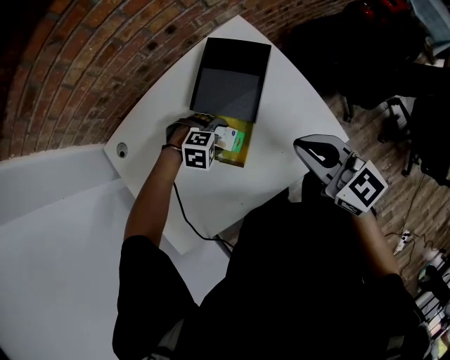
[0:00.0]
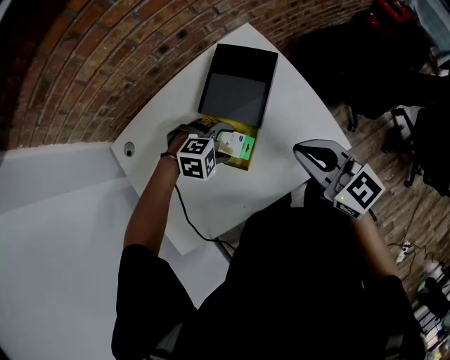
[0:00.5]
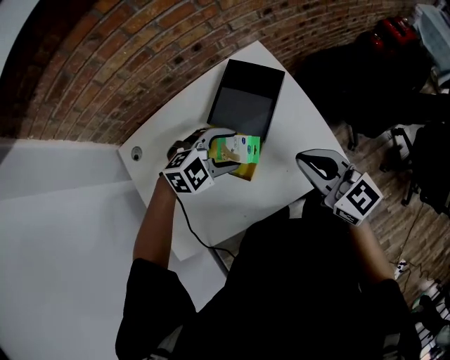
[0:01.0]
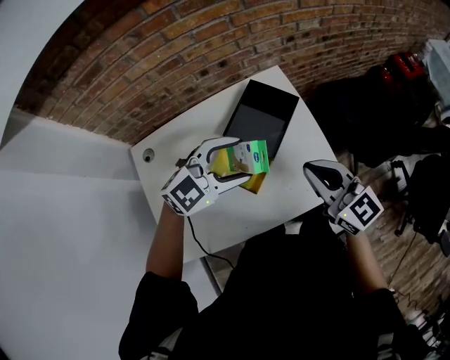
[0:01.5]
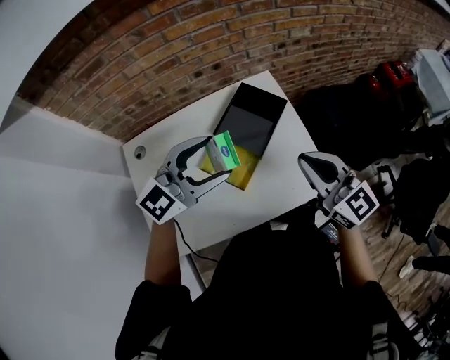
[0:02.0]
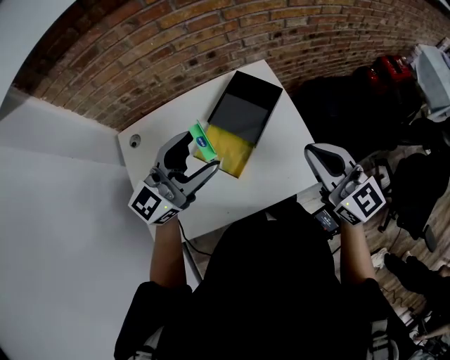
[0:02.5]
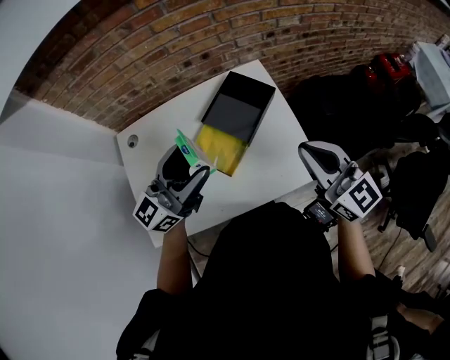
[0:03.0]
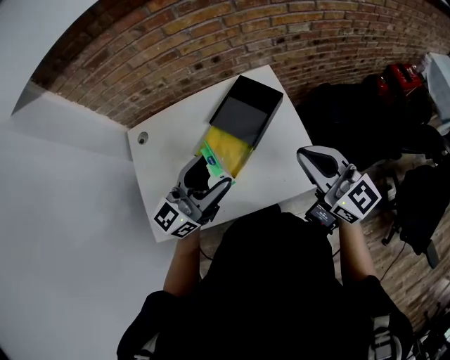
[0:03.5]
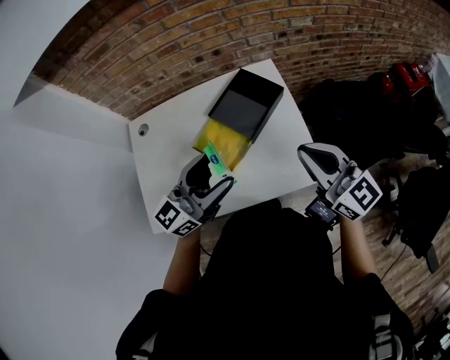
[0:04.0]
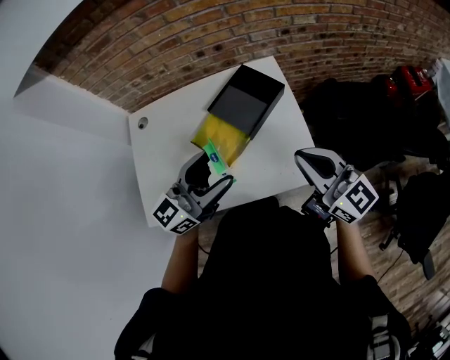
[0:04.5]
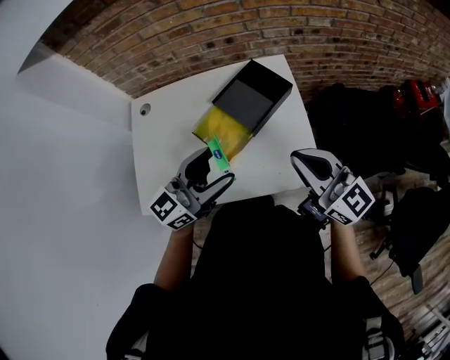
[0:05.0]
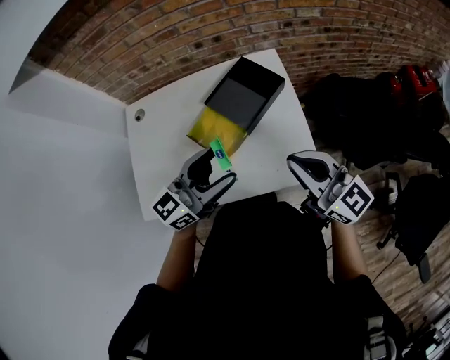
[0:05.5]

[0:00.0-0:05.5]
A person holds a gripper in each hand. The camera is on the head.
0:00.0 to 0:02.0: The left gripper moves upward, about 35 cm, and tilts its fingers some 70 degrees upward; the right gripper goes about 10 cm upward.
0:02.0 to 0:03.5: The right gripper is displaced to the right by some 5 cm; the left gripper goes about 5 cm backward, and rotates roughly 30 degrees.
0:03.5 to 0:05.5: The left gripper changes place by approximately 5 cm. Meanwhile the right gripper moves some 5 cm.

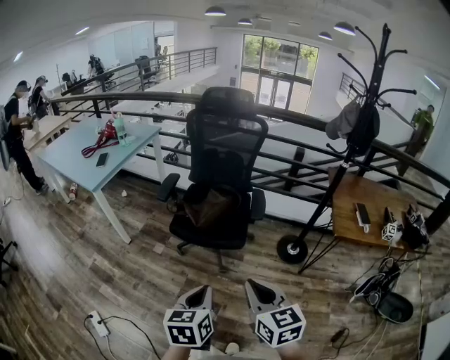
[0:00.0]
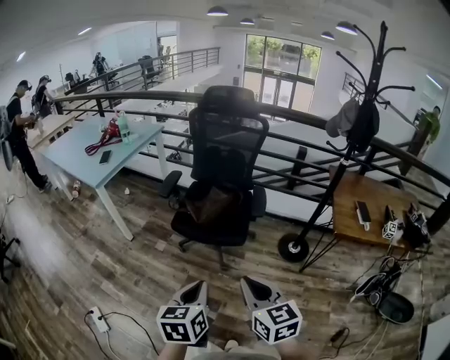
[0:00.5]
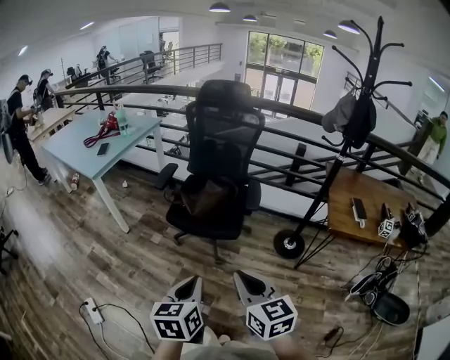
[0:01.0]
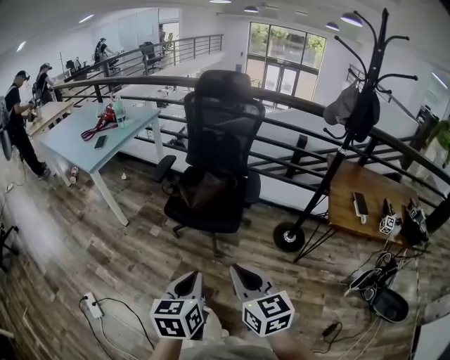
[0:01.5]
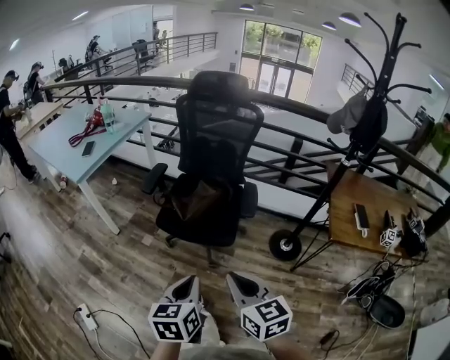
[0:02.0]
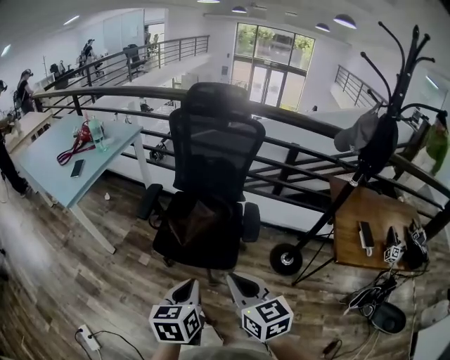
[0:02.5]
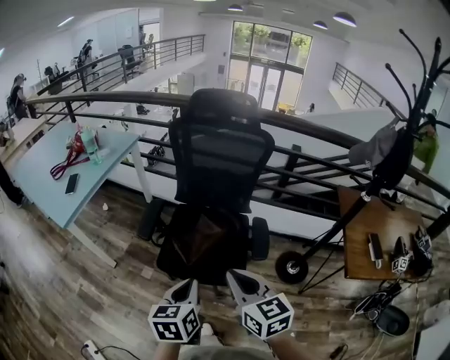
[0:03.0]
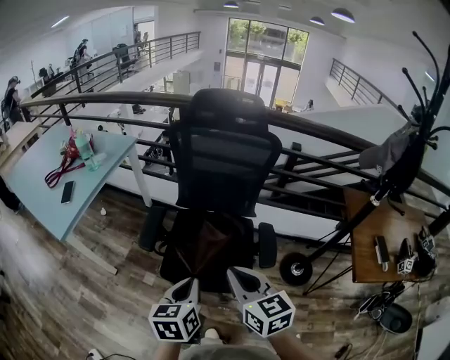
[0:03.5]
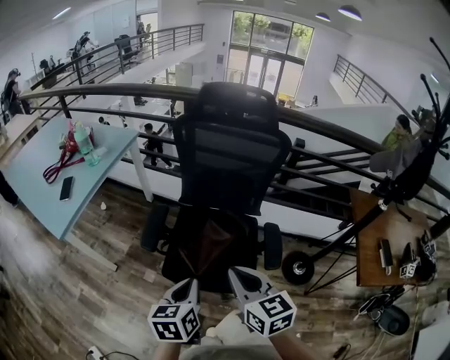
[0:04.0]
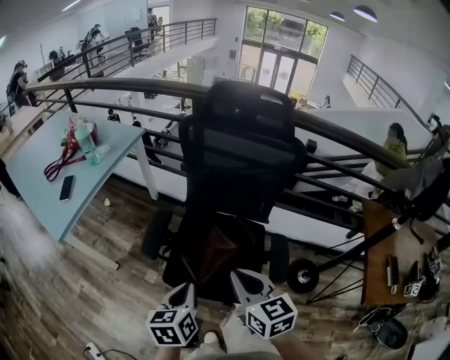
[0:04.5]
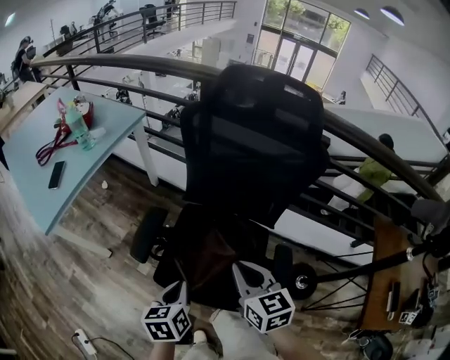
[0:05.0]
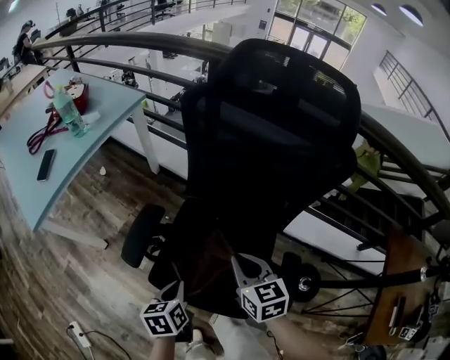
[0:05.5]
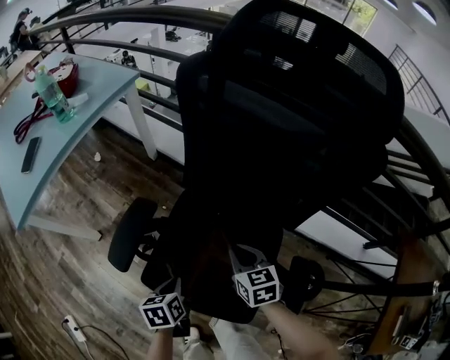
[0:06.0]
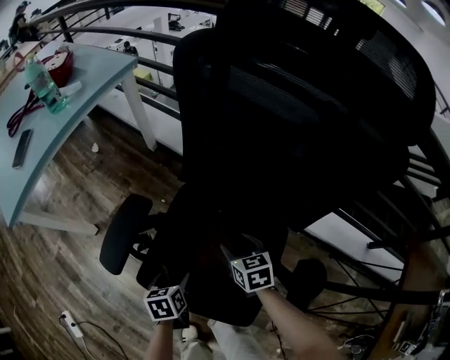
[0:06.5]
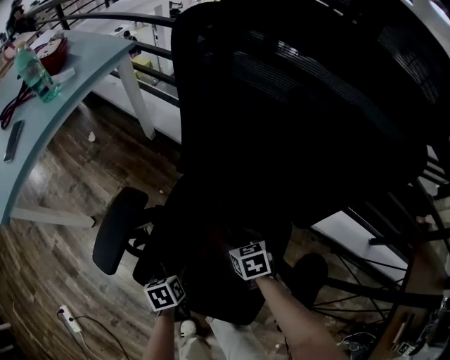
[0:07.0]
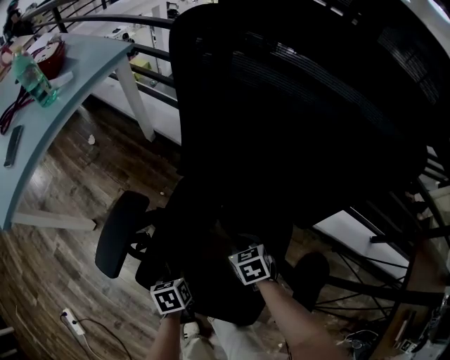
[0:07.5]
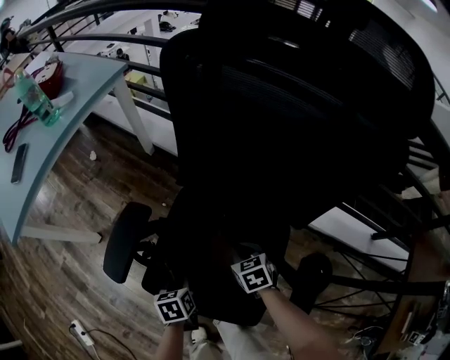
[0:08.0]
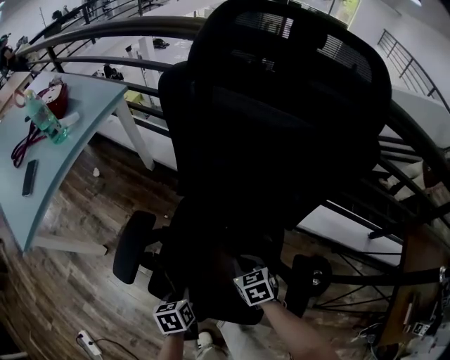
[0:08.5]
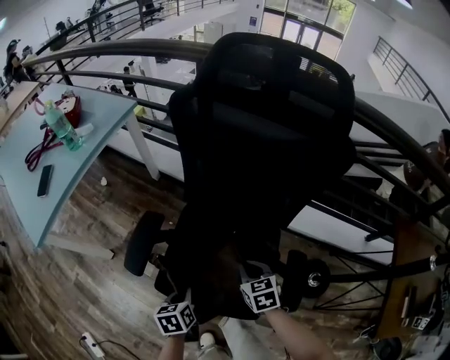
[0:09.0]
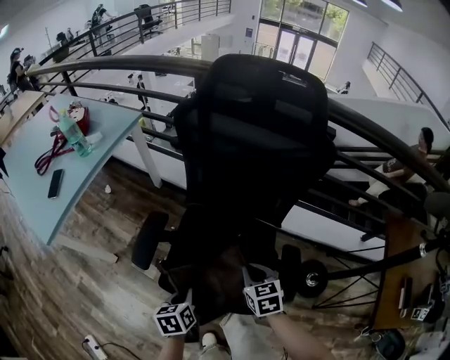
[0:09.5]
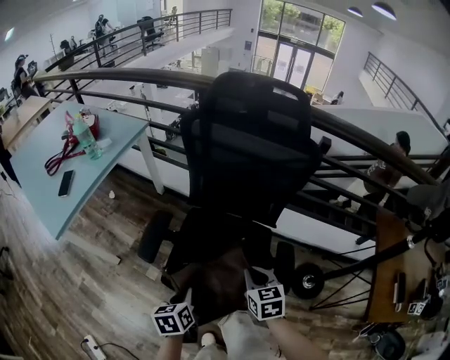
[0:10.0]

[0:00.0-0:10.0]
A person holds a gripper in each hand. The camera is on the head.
0:00.0 to 0:02.0: The two grippers go about 5 cm forward.
0:02.0 to 0:04.0: The two grippers go approximately 30 cm forward.
0:04.0 to 0:06.0: Both grippers travel together downward and forward, some 35 cm. The right gripper swivels some 20 degrees; the left gripper changes its angle by approximately 30 degrees.
0:06.0 to 0:08.0: The two grippers go approximately 10 cm downward. The left gripper opens and closes again; the right gripper opens, then closes again.
0:08.0 to 0:10.0: The grippers both shift upward and backward by some 30 cm. The right gripper changes its angle by some 30 degrees.

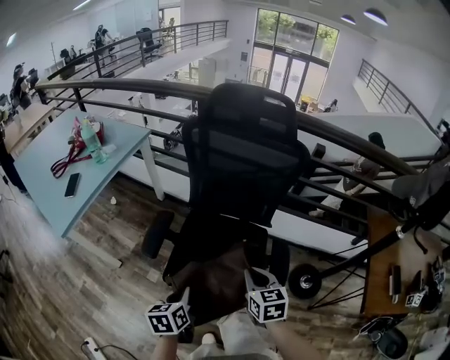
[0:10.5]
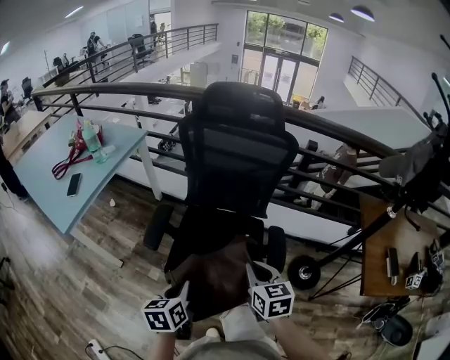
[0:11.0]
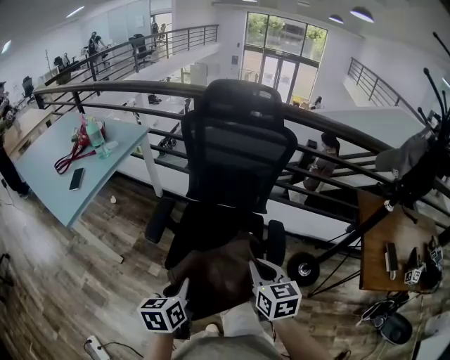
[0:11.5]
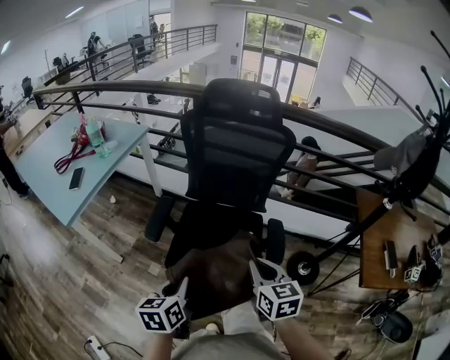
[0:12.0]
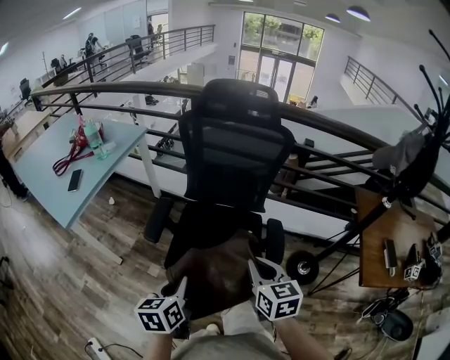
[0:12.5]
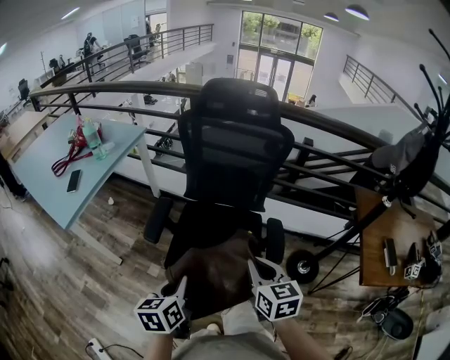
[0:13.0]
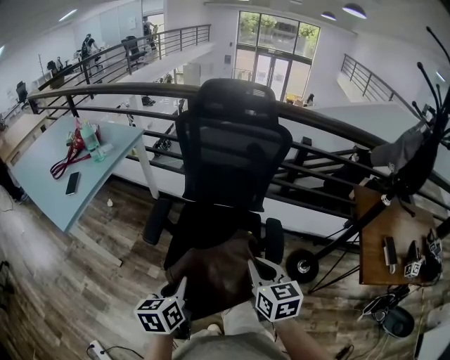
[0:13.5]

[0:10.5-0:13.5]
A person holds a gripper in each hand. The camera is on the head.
0:10.5 to 0:12.0: The grippers both shift backward and upward by roughly 10 cm.
0:12.0 to 0:13.5: The two grippers keep their place.

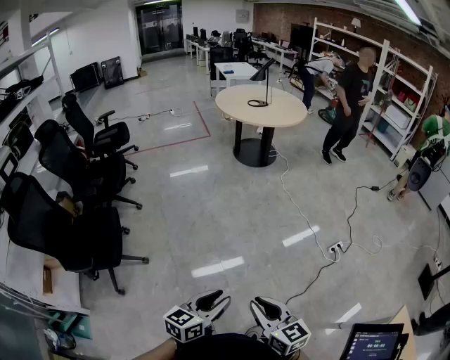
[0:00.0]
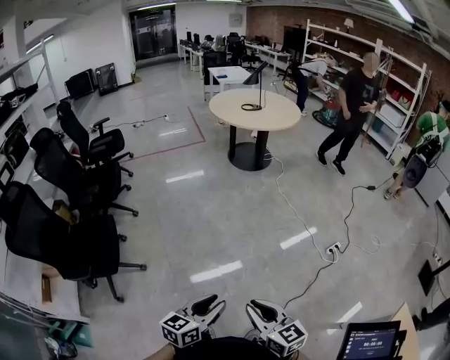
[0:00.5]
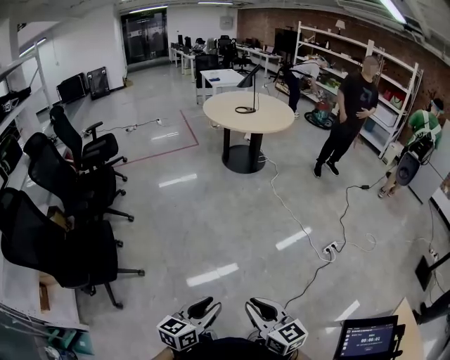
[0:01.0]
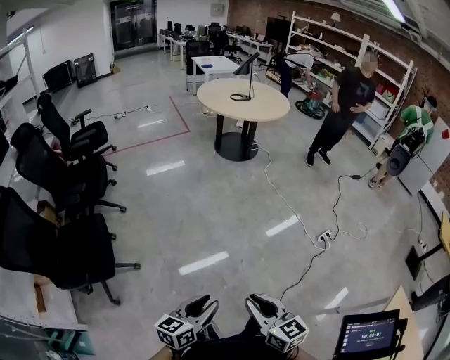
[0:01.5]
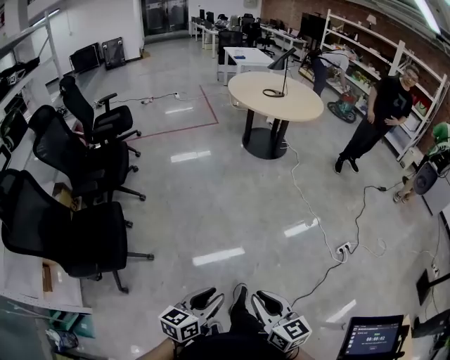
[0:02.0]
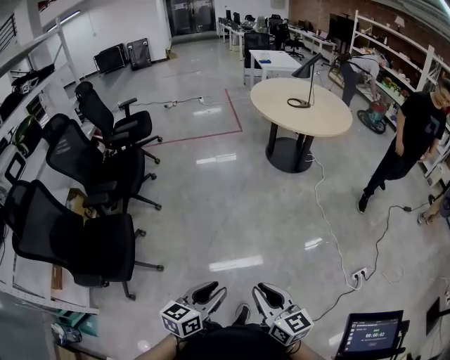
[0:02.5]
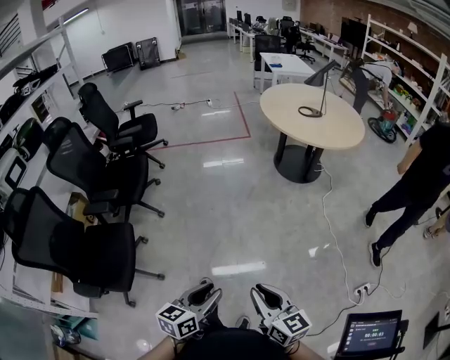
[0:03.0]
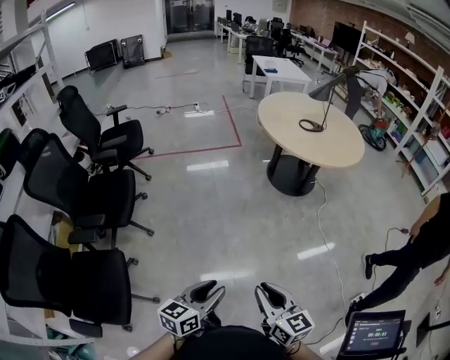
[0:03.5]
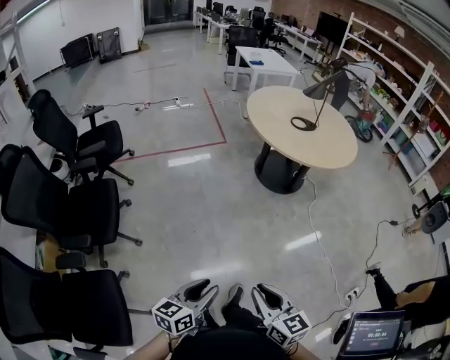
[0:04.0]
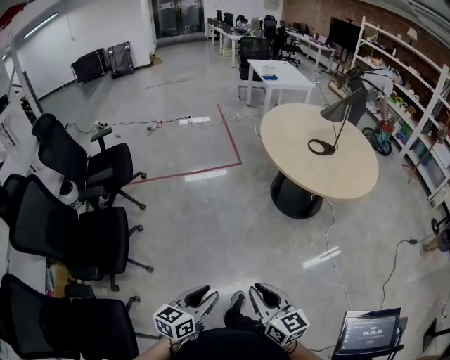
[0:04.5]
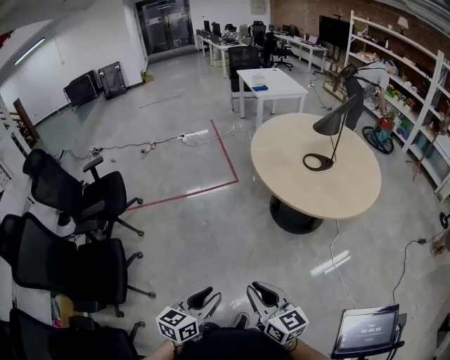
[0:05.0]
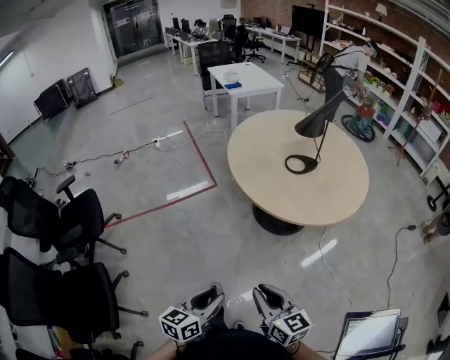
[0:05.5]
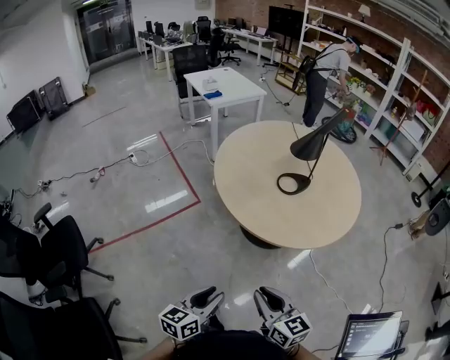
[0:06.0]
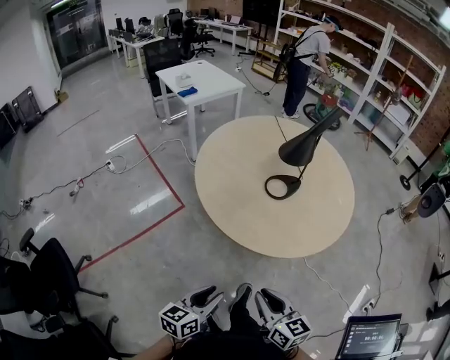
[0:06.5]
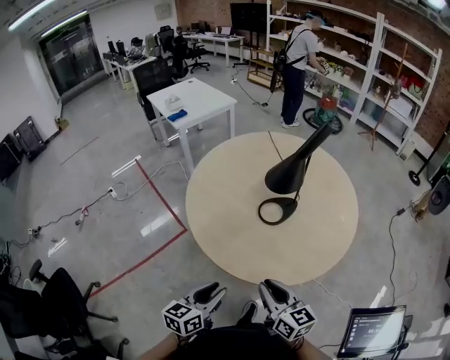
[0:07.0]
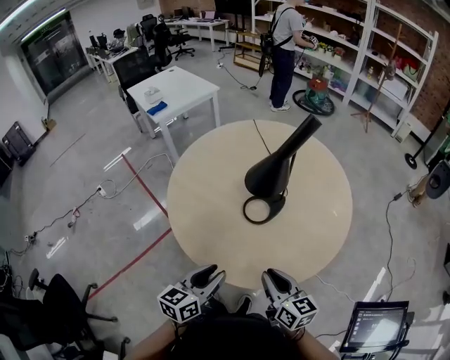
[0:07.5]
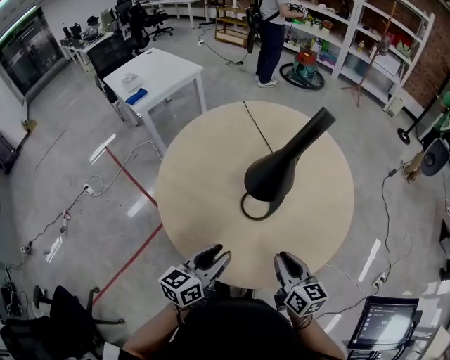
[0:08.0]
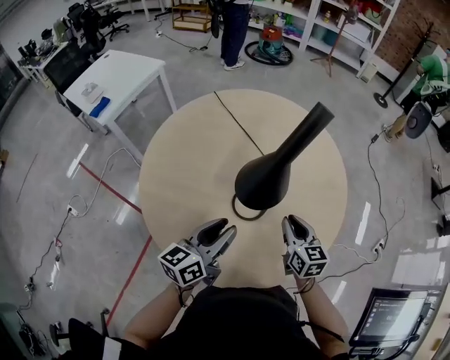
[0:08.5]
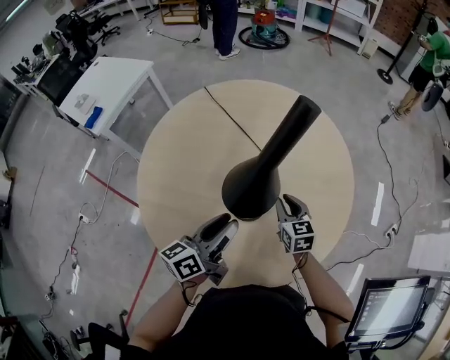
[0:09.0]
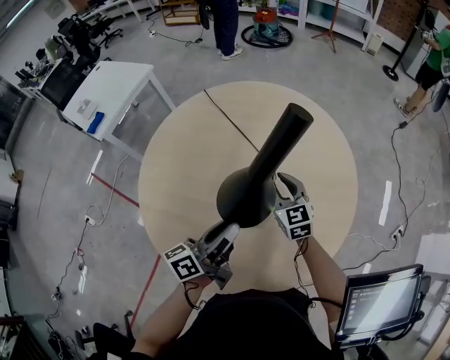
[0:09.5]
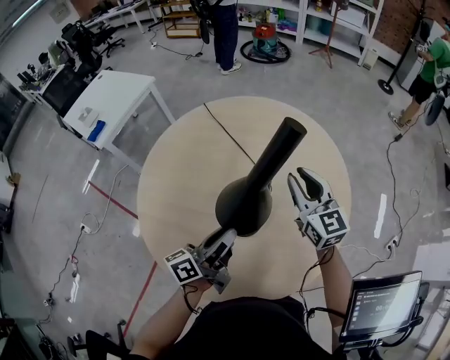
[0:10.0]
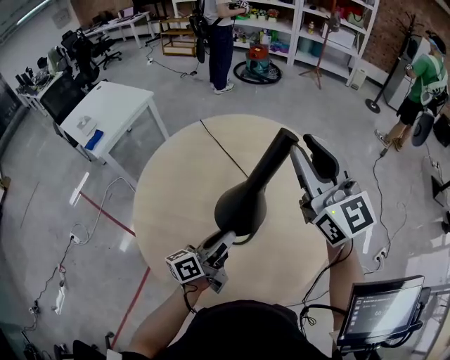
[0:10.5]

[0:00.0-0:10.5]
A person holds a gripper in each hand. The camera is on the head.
0:00.0 to 0:02.0: Both grippers travel together to the left and forward, roughly 15 cm.
0:02.0 to 0:04.0: Both grippers are carried forward, roughly 50 cm.
0:04.0 to 0:06.5: The pair of grippers is taken approximately 60 cm. The left gripper turns by approximately 30 degrees; the right gripper changes its angle by some 30 degrees.
0:06.5 to 0:08.5: Both grippers are carried some 40 cm. The right gripper turns by approximately 30 degrees; the left gripper rotates some 20 degrees.
0:08.5 to 0:10.5: The right gripper heads upward, covering about 35 cm, and angles its fingers upward, by approximately 40 degrees. The left gripper heads forward, covering some 5 cm, and rotates some 20 degrees.
